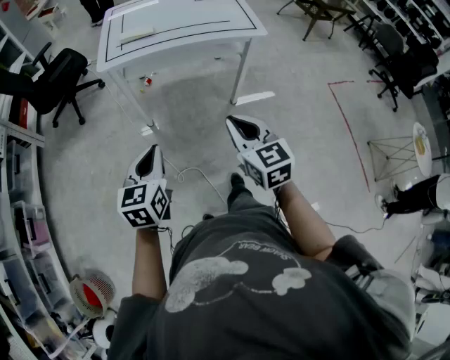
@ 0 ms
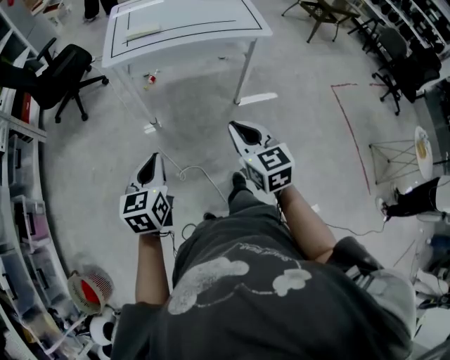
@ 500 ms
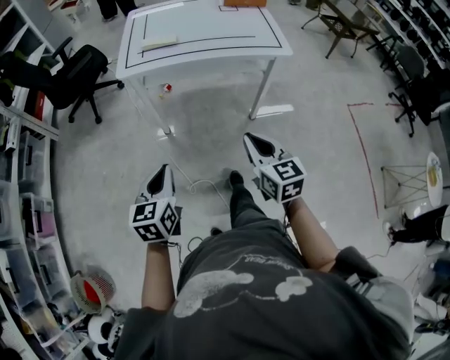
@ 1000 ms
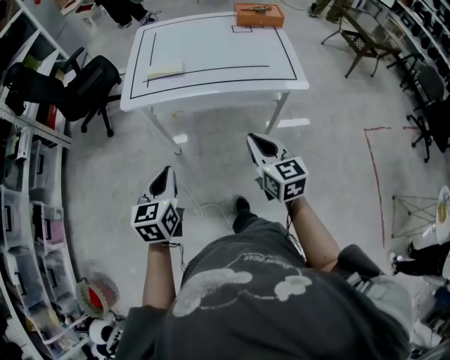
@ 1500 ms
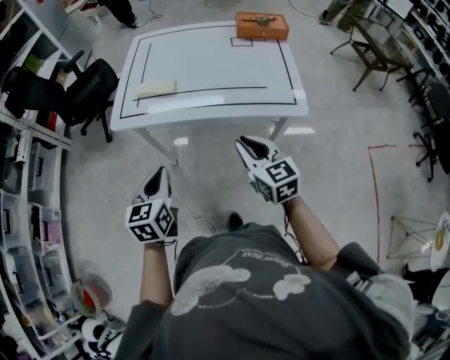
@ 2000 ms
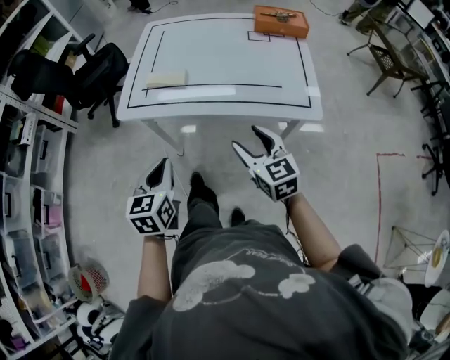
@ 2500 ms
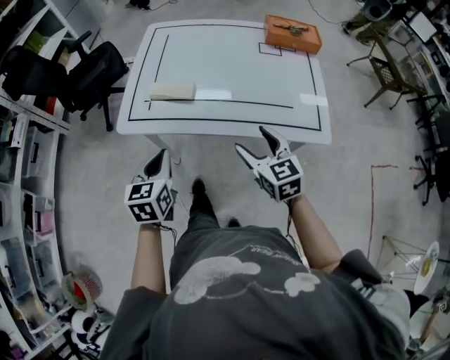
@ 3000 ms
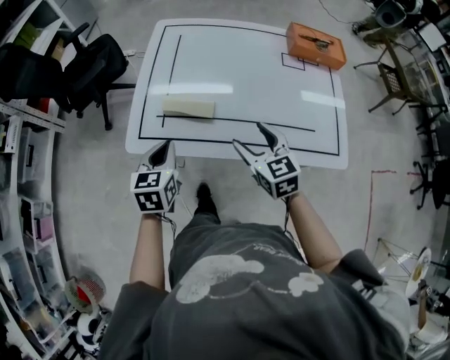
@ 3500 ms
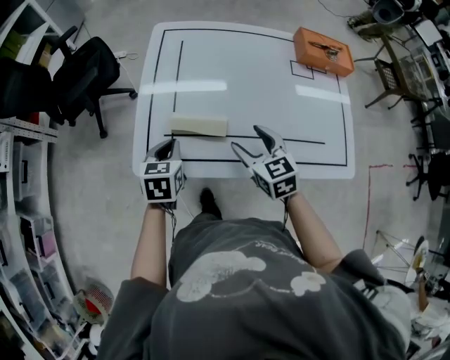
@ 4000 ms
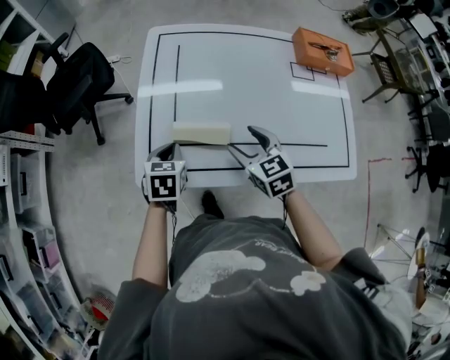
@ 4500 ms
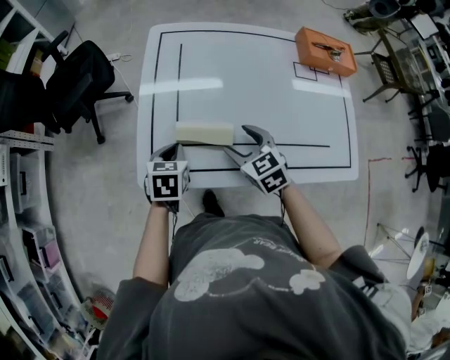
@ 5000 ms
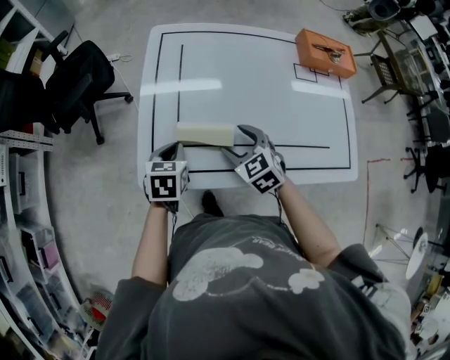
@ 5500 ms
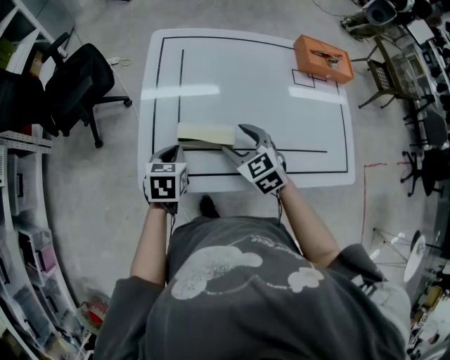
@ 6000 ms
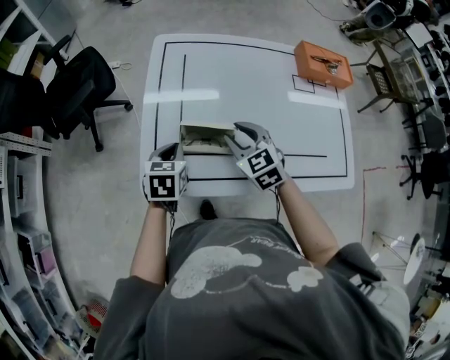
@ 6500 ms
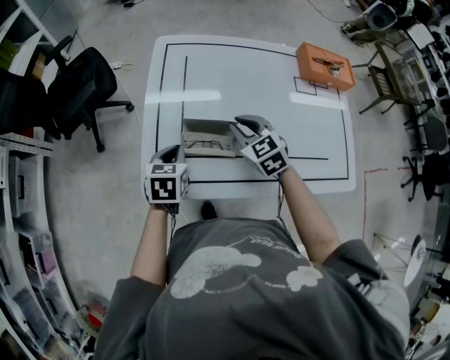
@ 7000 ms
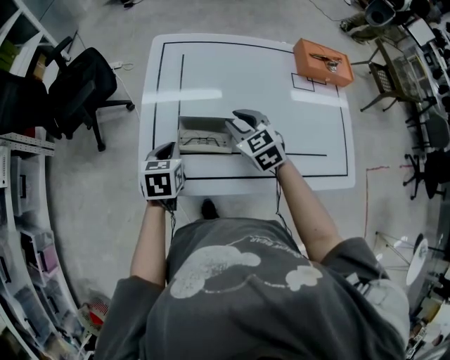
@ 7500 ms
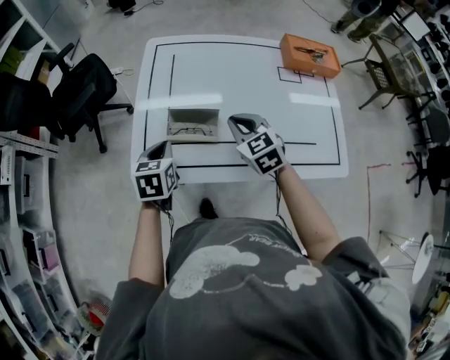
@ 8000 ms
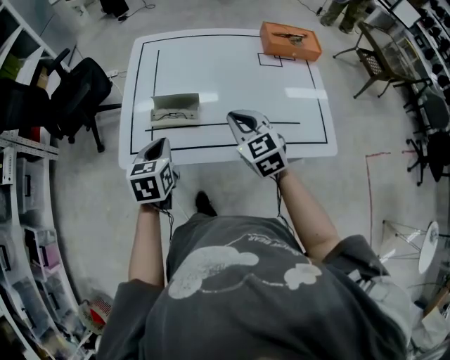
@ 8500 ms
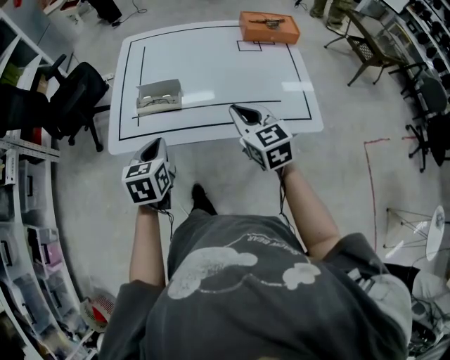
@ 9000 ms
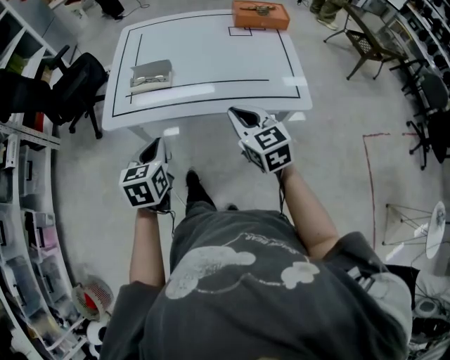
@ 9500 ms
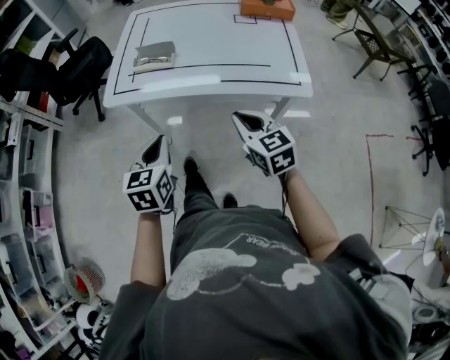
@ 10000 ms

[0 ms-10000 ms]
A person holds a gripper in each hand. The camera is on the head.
0 ms to 2000 ms: The two grippers go roughly 30 cm forward.
2000 ms to 4000 ms: The grippers both shift forward by about 30 cm. The right gripper opens its fingers.
4000 ms to 6000 ms: The right gripper changes place by approximately 5 cm.
6000 ms to 8000 ms: The right gripper changes place by about 5 cm, and closes. Meanwhile the left gripper travels upward by some 5 cm.
8000 ms to 10000 ms: Both grippers move backward, about 30 cm.

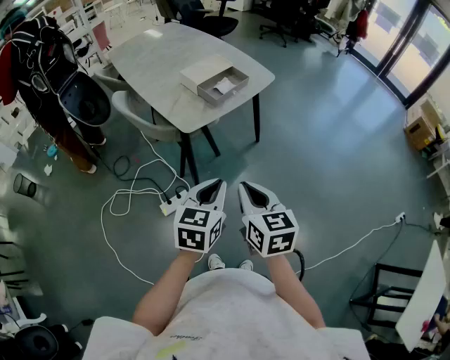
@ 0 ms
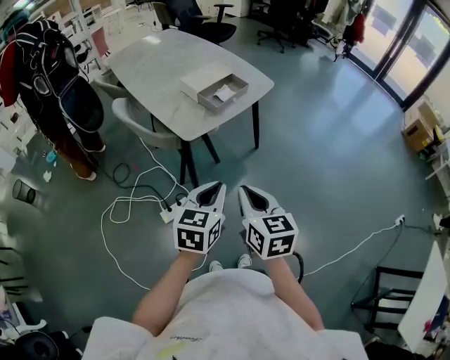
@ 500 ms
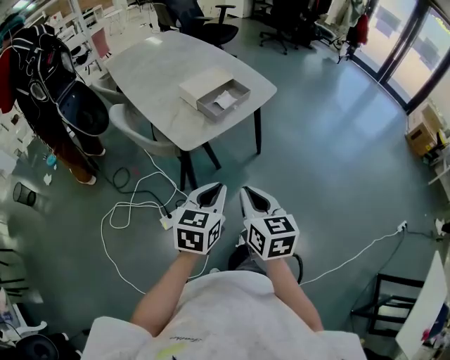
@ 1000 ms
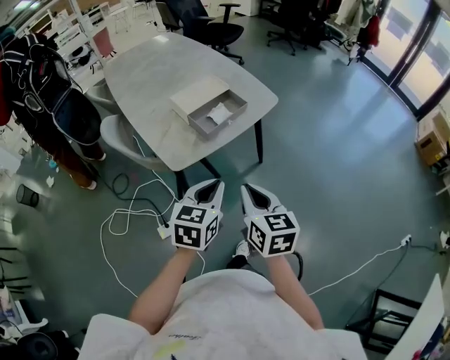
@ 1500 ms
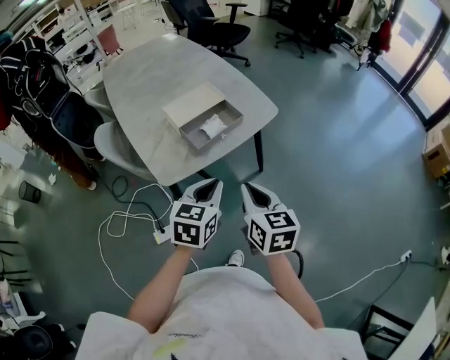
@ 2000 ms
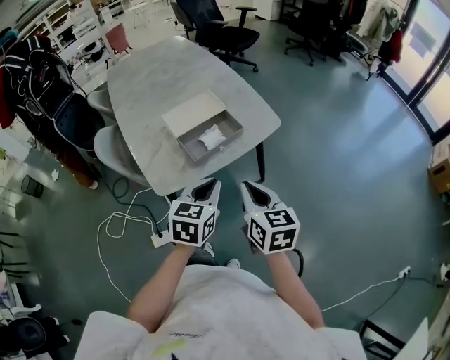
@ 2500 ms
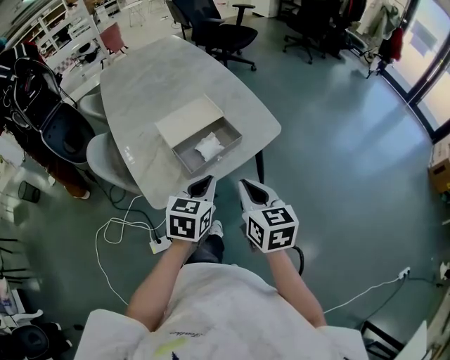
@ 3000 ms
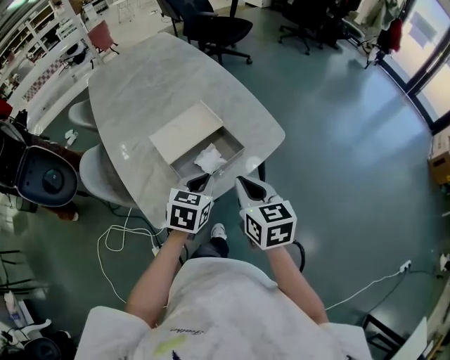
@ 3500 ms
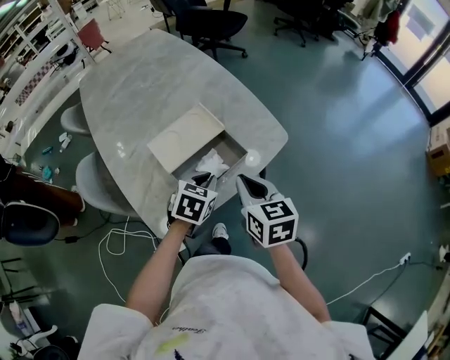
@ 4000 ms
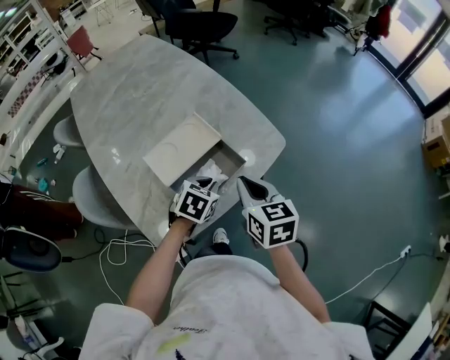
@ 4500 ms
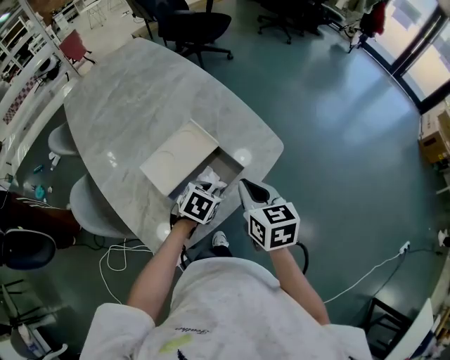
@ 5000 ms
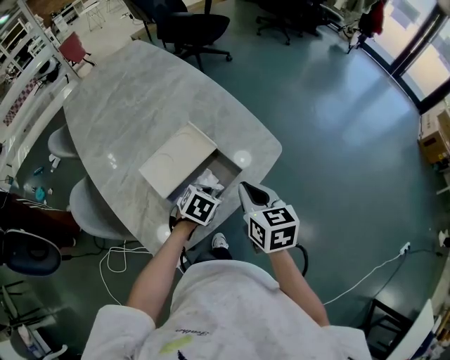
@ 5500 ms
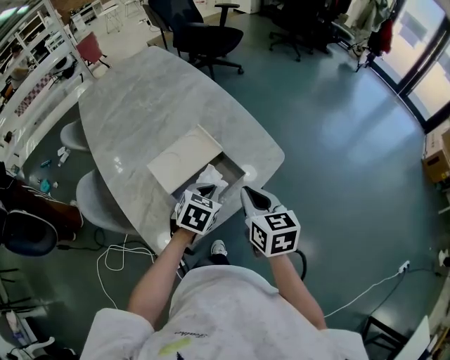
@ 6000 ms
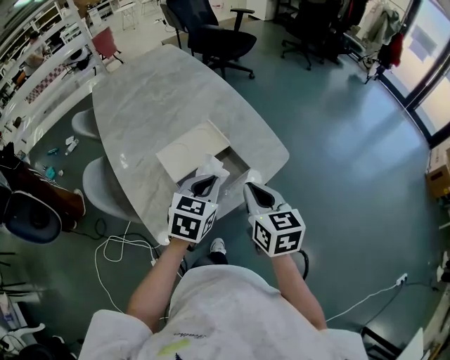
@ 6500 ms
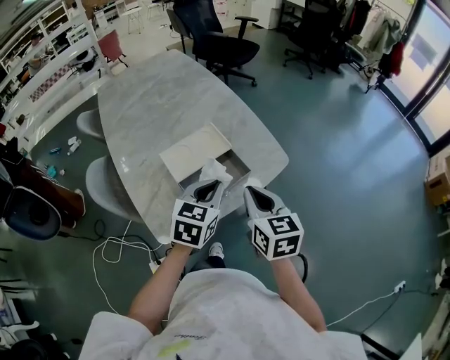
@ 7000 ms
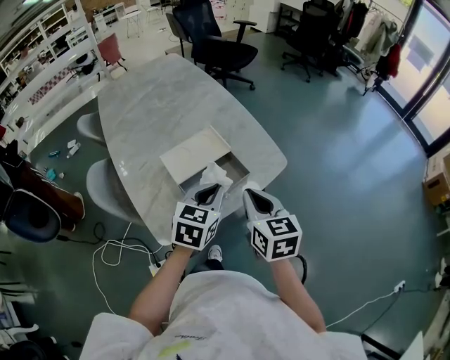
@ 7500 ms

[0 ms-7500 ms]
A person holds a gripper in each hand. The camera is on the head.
0 ms to 2000 ms: The two grippers go roughly 25 cm forward.
2000 ms to 4000 ms: Both grippers travel together forward, roughly 25 cm. The left gripper swivels some 20 degrees.
4000 ms to 5500 ms: The left gripper is displaced downward by roughly 5 cm, while the right gripper ends up about 5 cm from where it was.
5500 ms to 7500 ms: The right gripper travels backward and upward by roughly 10 cm. Meanwhile the left gripper is displaced upward and backward by roughly 20 cm, and tilts its fingers about 30 degrees upward.

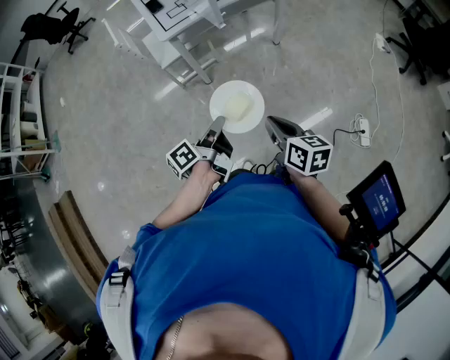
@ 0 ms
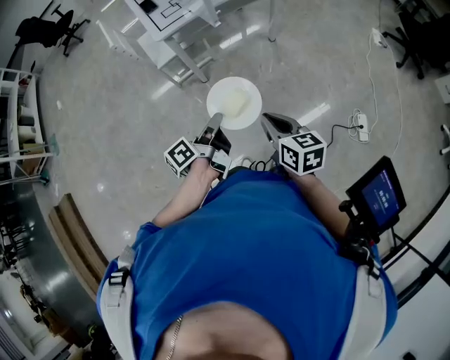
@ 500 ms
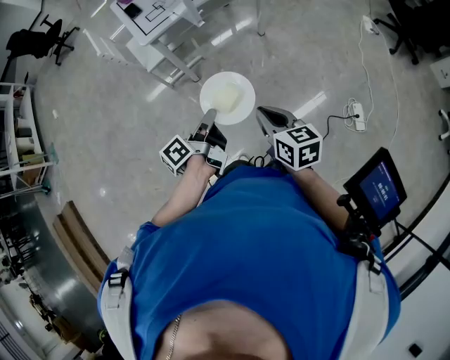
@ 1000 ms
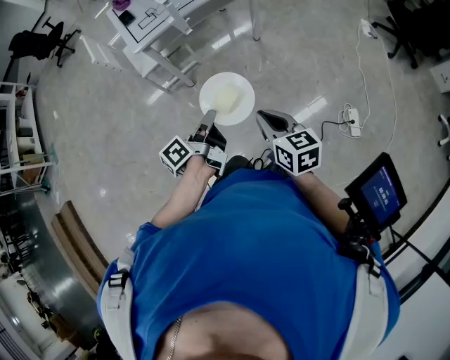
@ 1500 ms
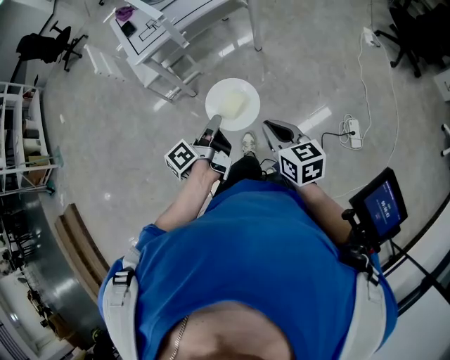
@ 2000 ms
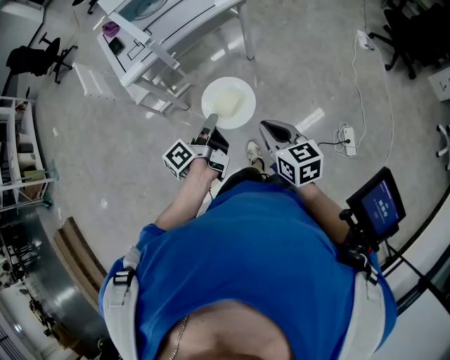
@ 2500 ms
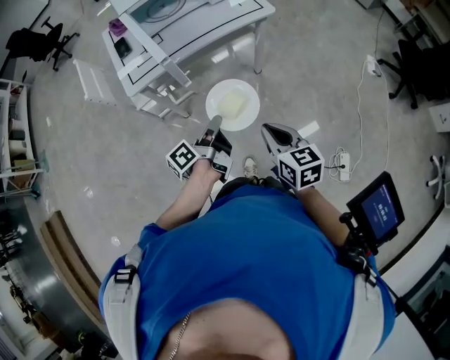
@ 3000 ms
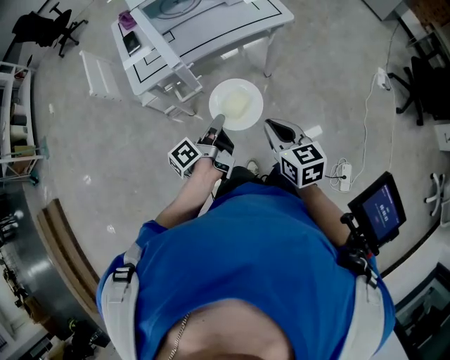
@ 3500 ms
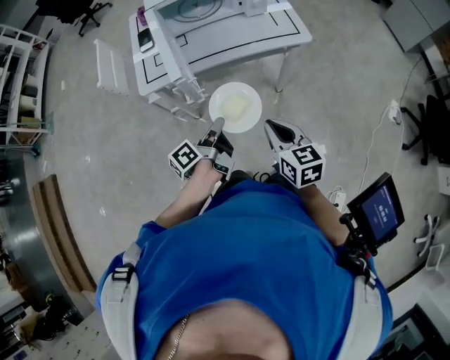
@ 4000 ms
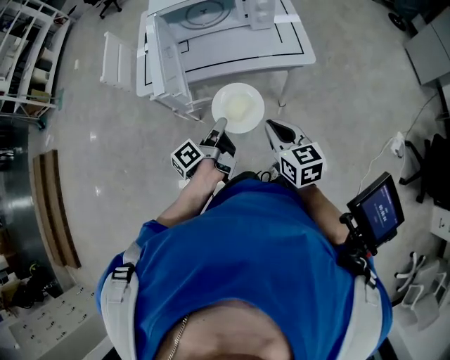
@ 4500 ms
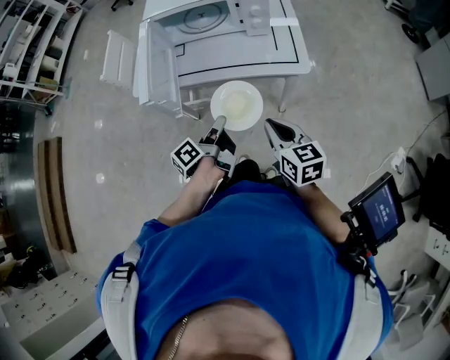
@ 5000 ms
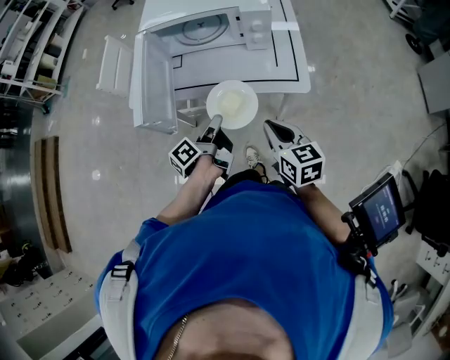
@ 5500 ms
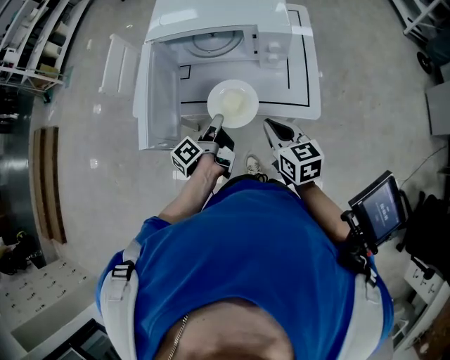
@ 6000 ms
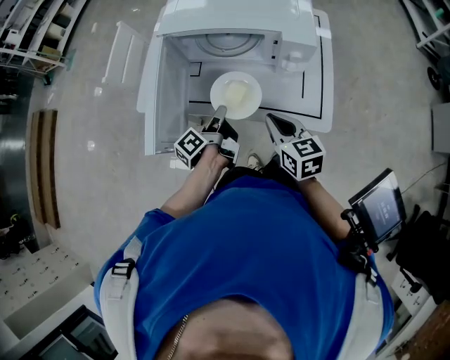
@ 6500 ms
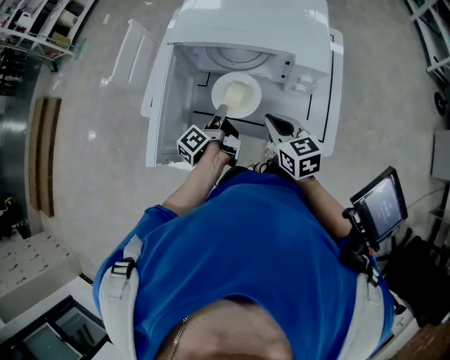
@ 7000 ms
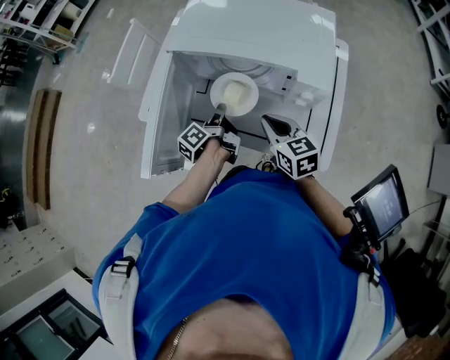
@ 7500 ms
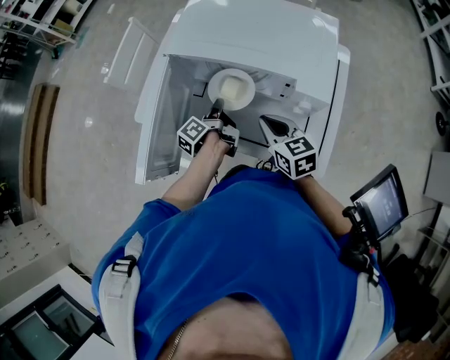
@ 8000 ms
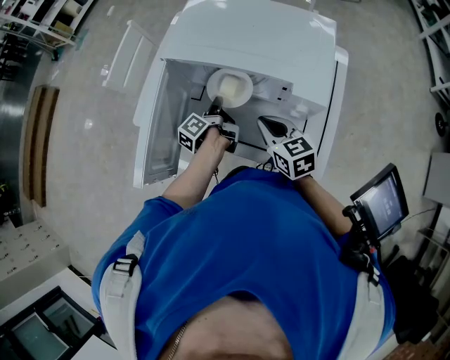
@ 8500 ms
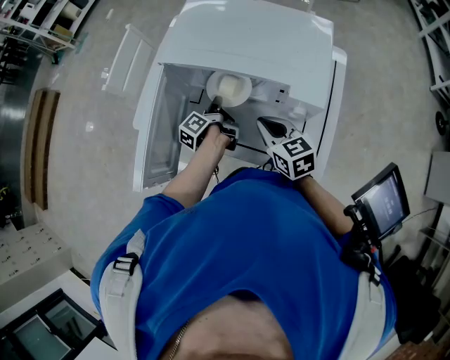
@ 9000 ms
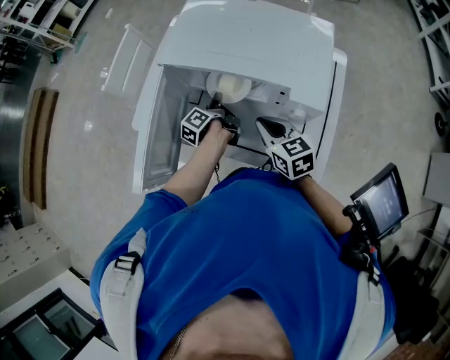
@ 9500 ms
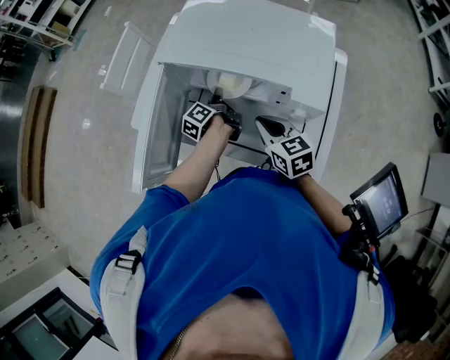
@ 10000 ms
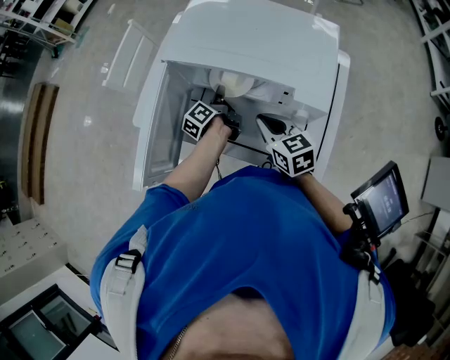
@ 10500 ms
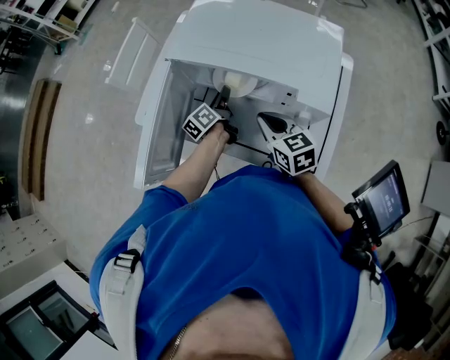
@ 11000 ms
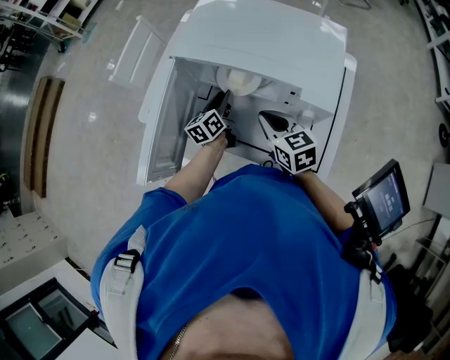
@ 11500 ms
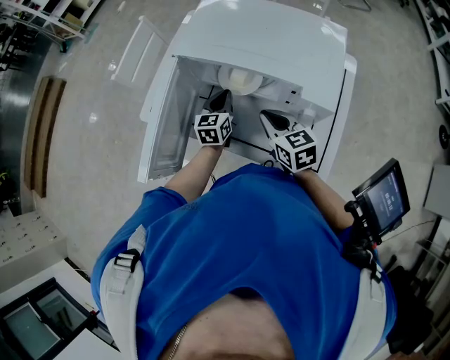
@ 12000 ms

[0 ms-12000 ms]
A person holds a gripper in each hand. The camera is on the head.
0 ms to 2000 ms: The grippers both shift to the right by approximately 15 cm.
2000 ms to 4000 ms: Both grippers travel together forward, approximately 35 cm.
4000 ms to 6000 ms: Both grippers move forward and to the right, some 30 cm. The right gripper turns by approximately 20 degrees, while the left gripper changes its angle by approximately 20 degrees.
6000 ms to 8000 ms: Both grippers move forward, about 20 cm. The left gripper swivels about 20 degrees.
8000 ms to 10000 ms: The left gripper shifts by about 5 cm.
10000 ms to 12000 ms: The left gripper changes place by some 5 cm, twists approximately 70 degrees clockwise, seen from behind, and opens, then closes once more.
